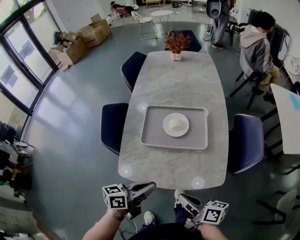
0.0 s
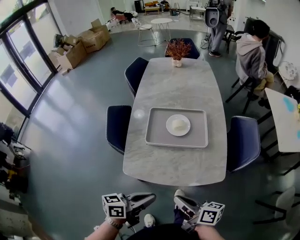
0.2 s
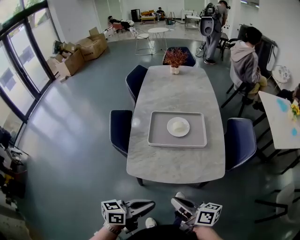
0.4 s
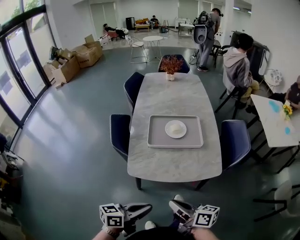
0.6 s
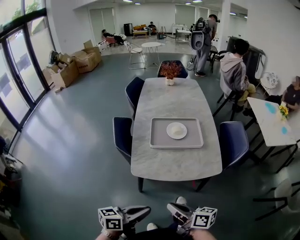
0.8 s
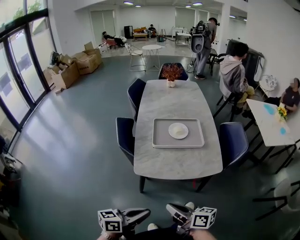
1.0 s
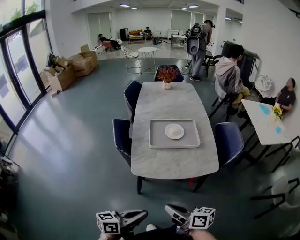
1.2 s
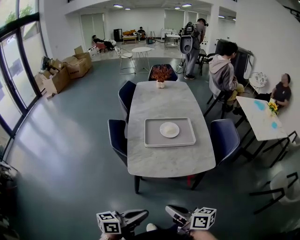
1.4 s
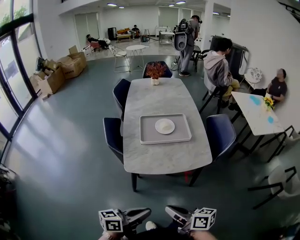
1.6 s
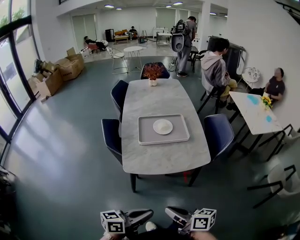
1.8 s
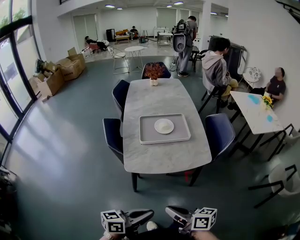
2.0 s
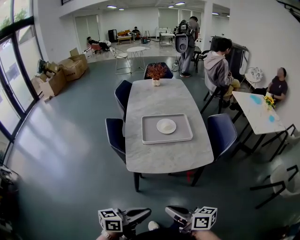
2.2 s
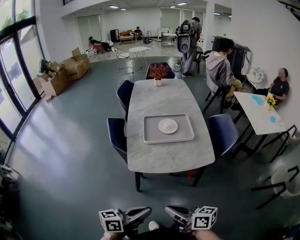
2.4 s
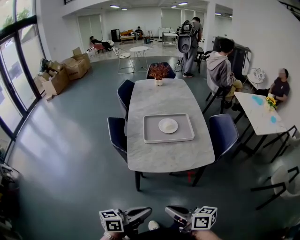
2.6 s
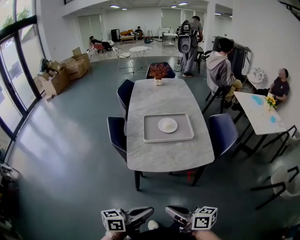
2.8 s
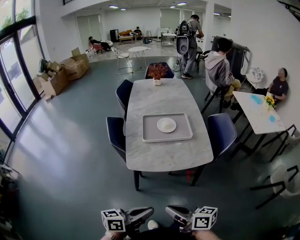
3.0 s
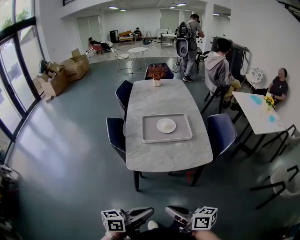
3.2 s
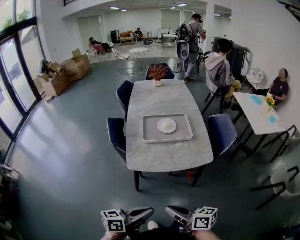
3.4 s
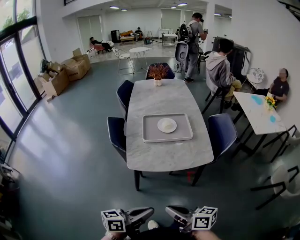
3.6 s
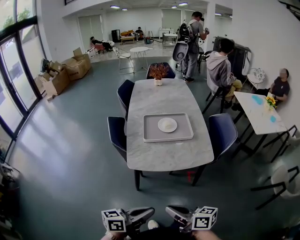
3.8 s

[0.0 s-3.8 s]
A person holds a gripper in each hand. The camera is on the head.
0.0 to 1.2 s: The right gripper moves some 25 cm.
1.2 to 2.6 s: The right gripper moves about 5 cm.

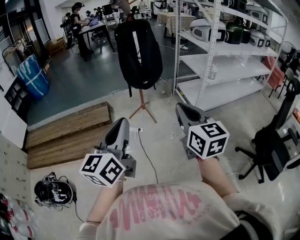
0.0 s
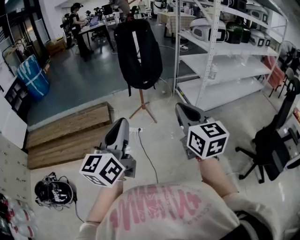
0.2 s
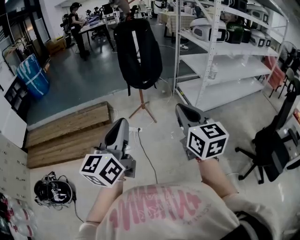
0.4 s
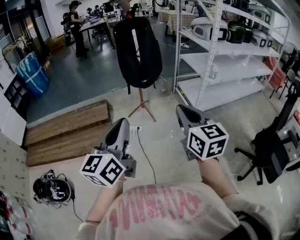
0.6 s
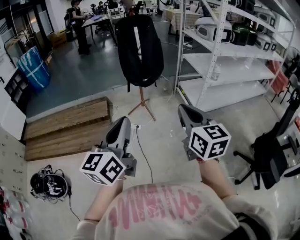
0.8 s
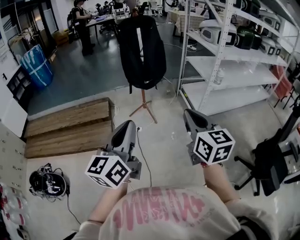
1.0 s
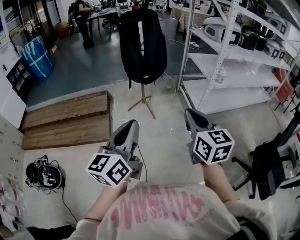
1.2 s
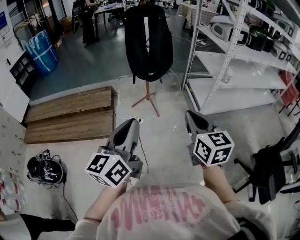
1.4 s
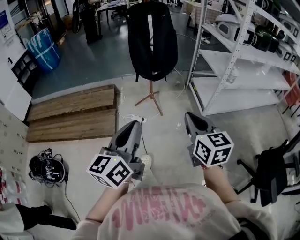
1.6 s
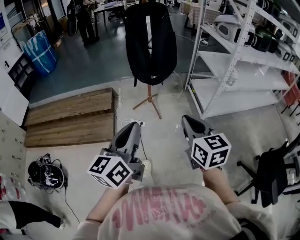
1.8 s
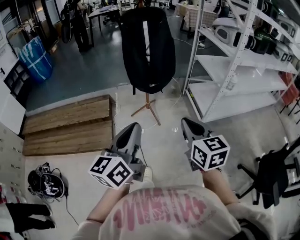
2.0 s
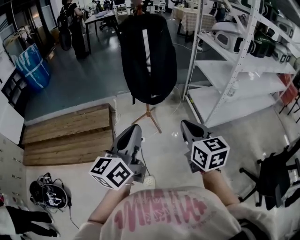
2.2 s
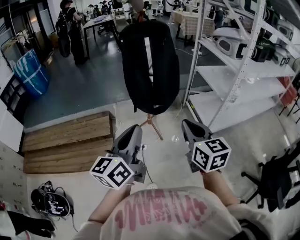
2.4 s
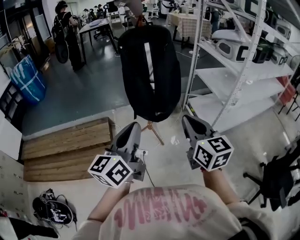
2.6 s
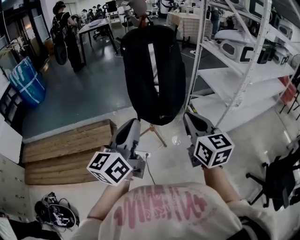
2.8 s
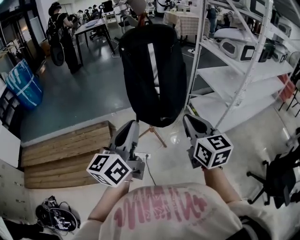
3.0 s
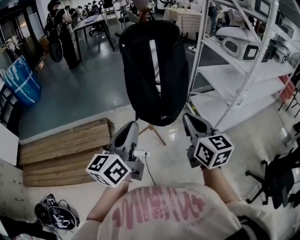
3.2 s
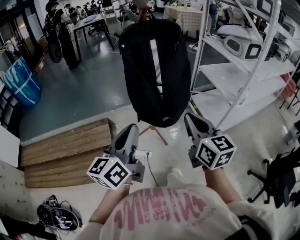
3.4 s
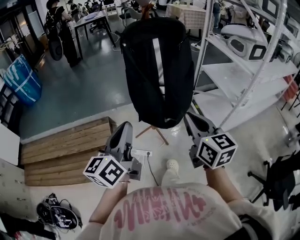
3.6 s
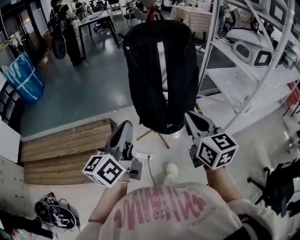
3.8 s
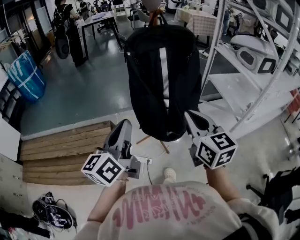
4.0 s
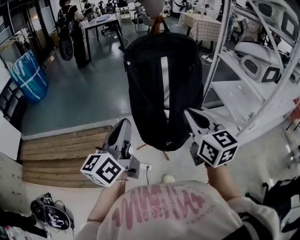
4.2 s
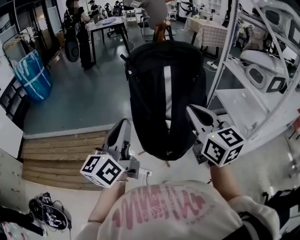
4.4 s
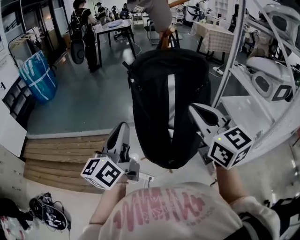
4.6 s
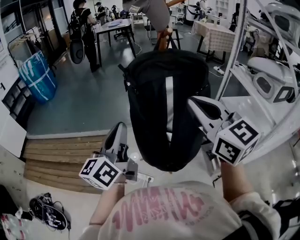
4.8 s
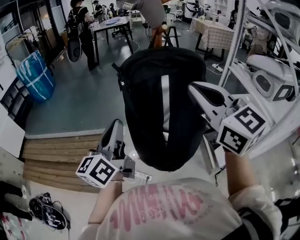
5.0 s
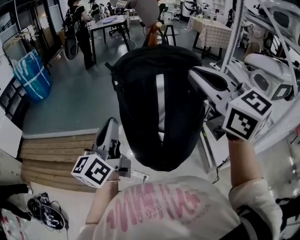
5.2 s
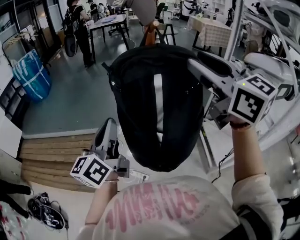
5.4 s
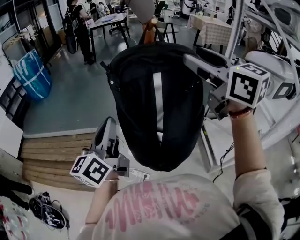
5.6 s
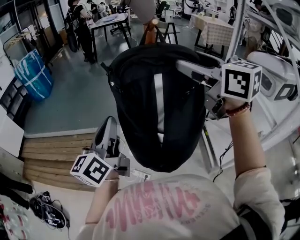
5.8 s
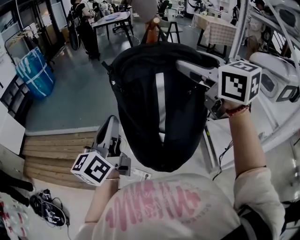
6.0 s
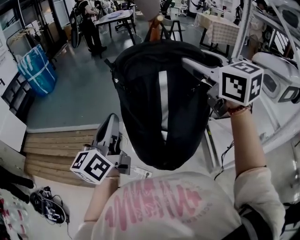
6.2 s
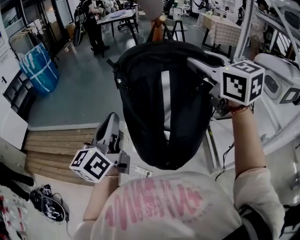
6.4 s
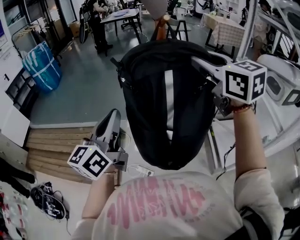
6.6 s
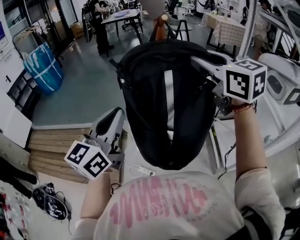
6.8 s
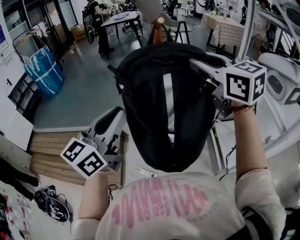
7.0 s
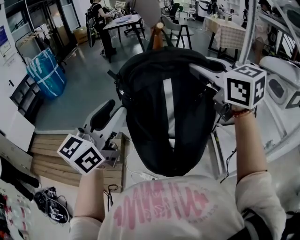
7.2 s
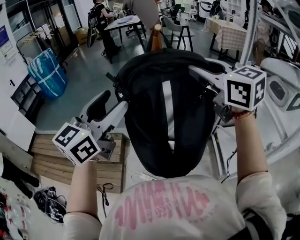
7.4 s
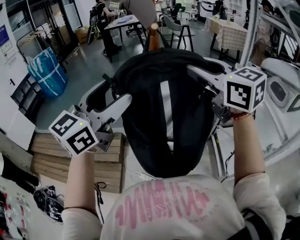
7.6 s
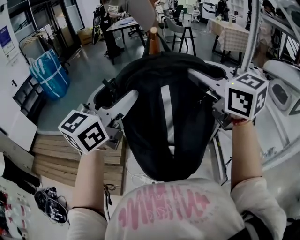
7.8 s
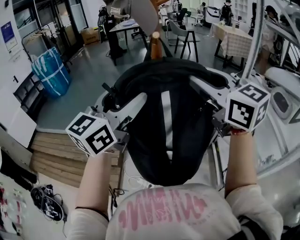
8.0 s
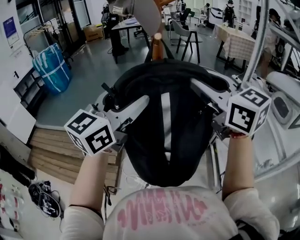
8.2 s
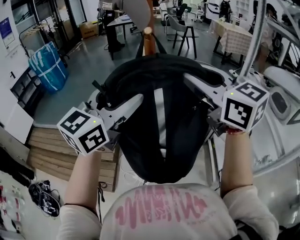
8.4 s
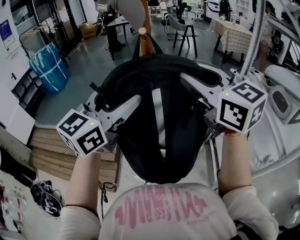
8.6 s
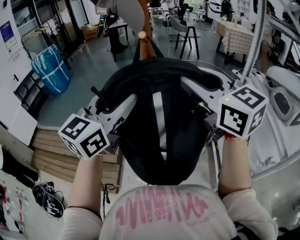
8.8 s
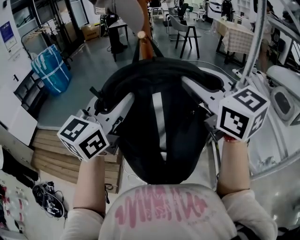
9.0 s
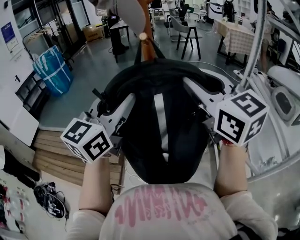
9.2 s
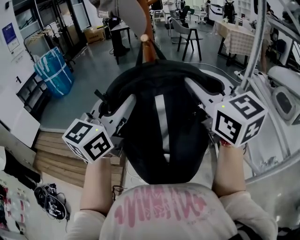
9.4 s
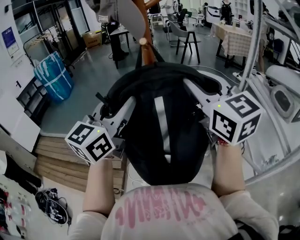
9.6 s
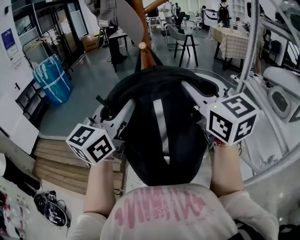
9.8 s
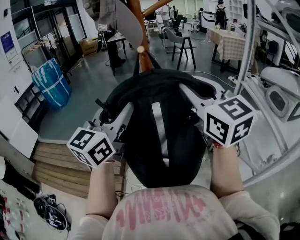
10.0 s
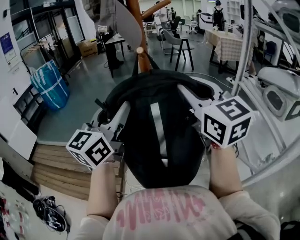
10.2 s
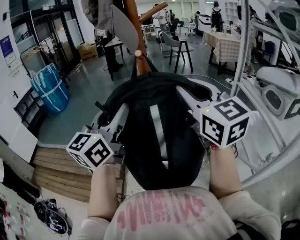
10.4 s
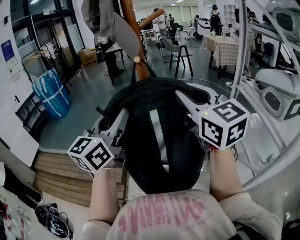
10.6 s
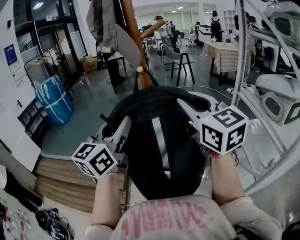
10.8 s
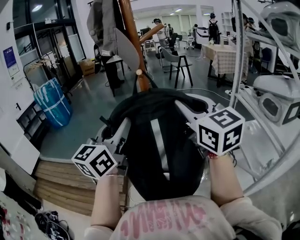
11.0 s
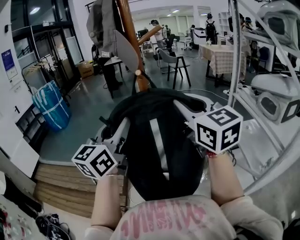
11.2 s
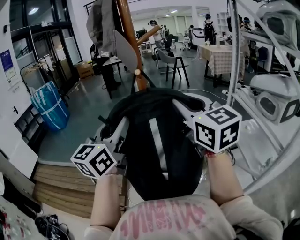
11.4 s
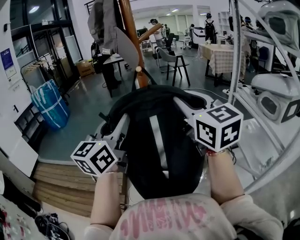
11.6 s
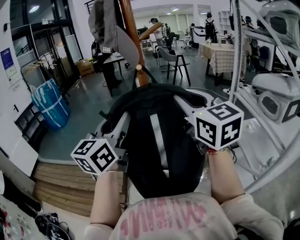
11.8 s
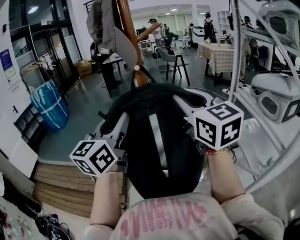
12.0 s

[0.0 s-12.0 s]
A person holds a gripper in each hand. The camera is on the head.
0.0 to 1.6 s: The right gripper travels downward and forward by some 15 cm. The left gripper goes about 10 cm downward, forward and to the right.
1.6 to 3.0 s: Both grippers travel together forward, about 30 cm.
3.0 to 4.4 s: The left gripper is displaced forward by some 15 cm. The right gripper moves forward and upward, about 20 cm.
4.4 to 6.0 s: The left gripper moves forward, roughly 5 cm; the right gripper heads forward and upward, covering about 20 cm, and opens up.
6.0 to 7.6 s: The left gripper is displaced upward and to the right by about 10 cm, rotates approximately 40 degrees, and opens its fingers. The right gripper closes its fingers.
7.6 to 9.0 s: The left gripper closes up.
9.0 to 12.0 s: The grippers make only small movements.

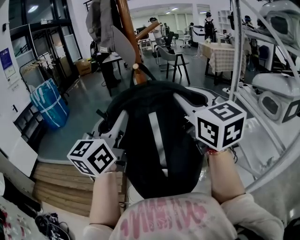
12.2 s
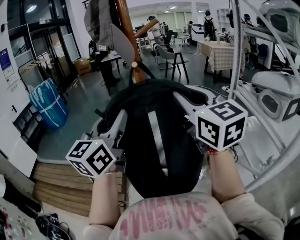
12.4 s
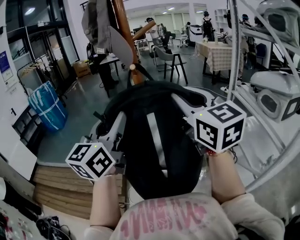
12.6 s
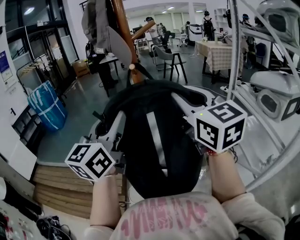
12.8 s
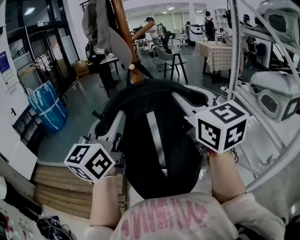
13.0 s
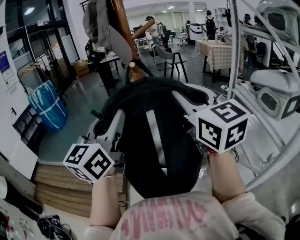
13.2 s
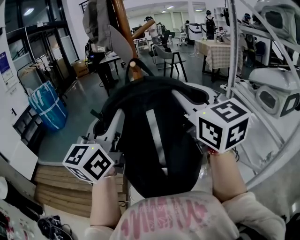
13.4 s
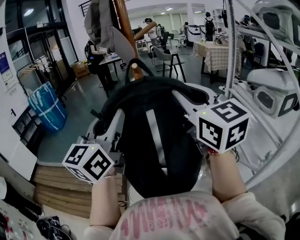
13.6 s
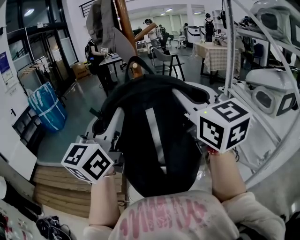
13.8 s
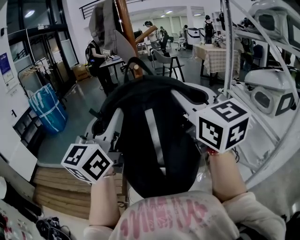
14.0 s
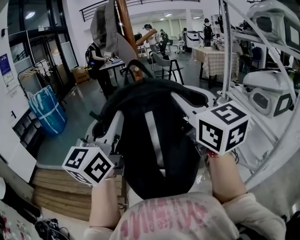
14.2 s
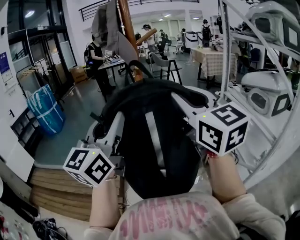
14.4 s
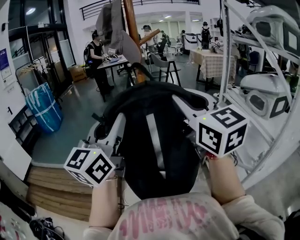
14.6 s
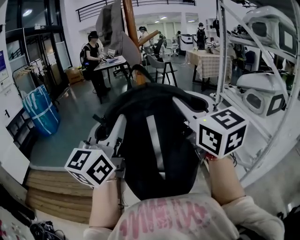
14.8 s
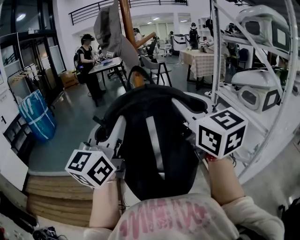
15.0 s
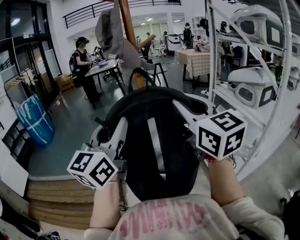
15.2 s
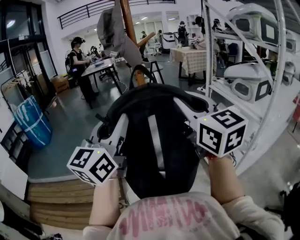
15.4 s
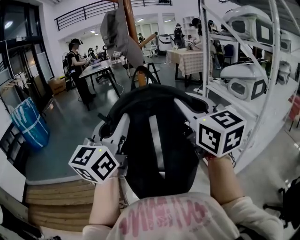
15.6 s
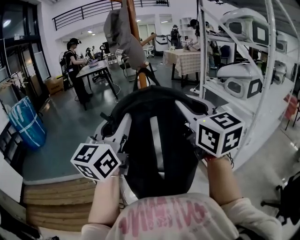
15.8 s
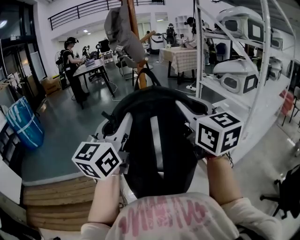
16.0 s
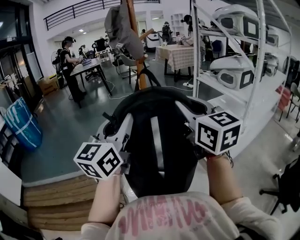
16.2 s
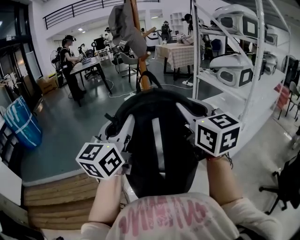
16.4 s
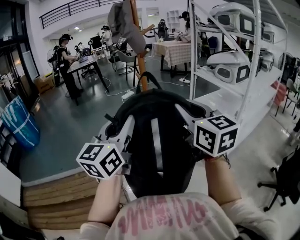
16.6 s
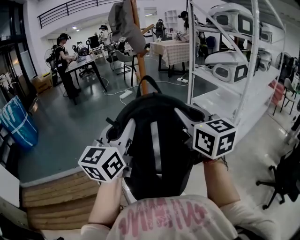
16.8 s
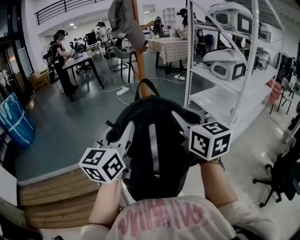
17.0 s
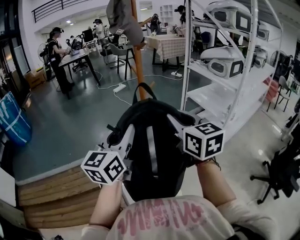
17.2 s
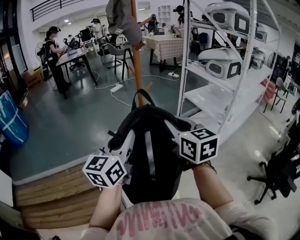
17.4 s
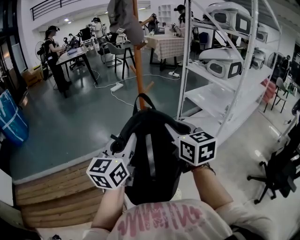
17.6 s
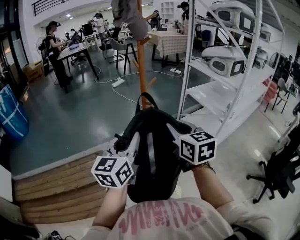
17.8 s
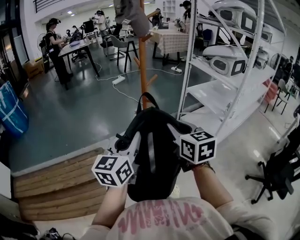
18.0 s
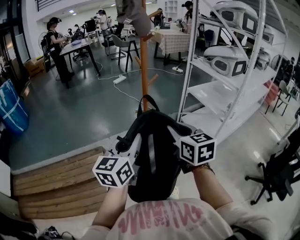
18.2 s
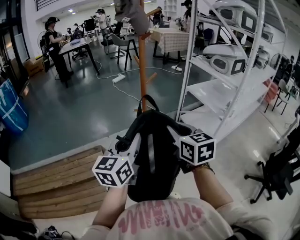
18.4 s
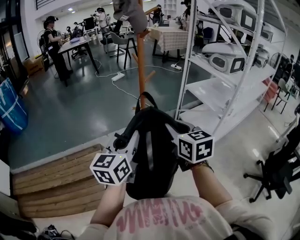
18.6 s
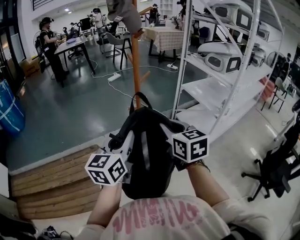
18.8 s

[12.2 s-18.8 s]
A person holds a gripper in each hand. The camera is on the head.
12.2 to 13.8 s: Both grippers move backward, roughly 5 cm.
13.8 to 15.4 s: The left gripper is displaced backward by about 5 cm. The right gripper is displaced backward by roughly 10 cm.
15.4 to 17.2 s: The right gripper travels backward, downward and to the left by approximately 20 cm, and rotates roughly 20 degrees; the left gripper moves downward and backward, approximately 15 cm.
17.2 to 18.8 s: The grippers both shift downward by some 10 cm.

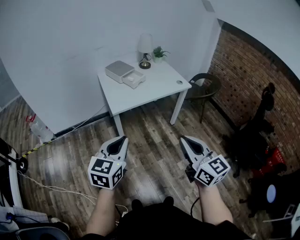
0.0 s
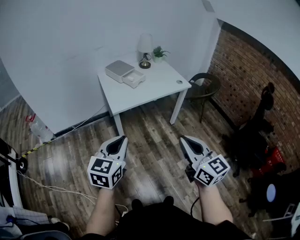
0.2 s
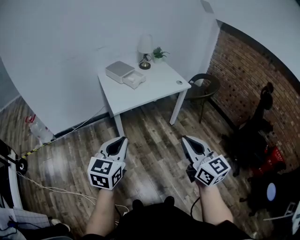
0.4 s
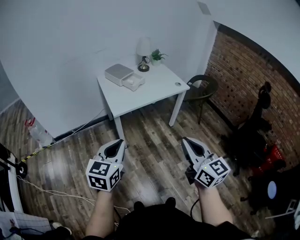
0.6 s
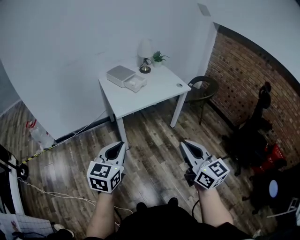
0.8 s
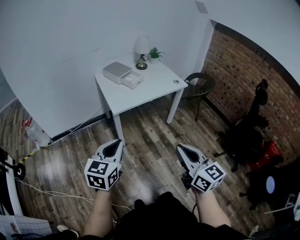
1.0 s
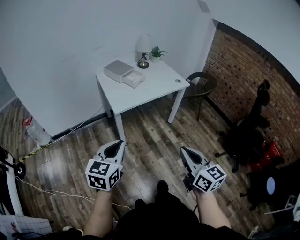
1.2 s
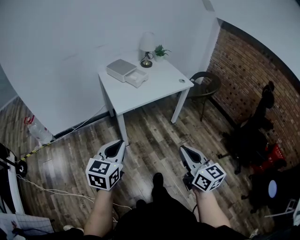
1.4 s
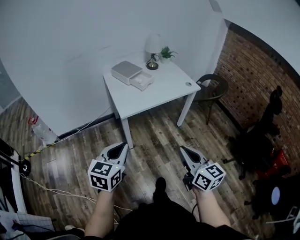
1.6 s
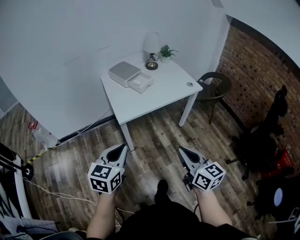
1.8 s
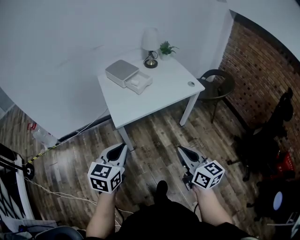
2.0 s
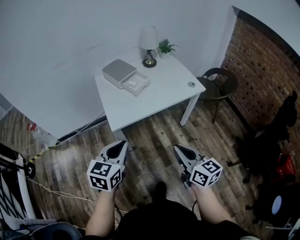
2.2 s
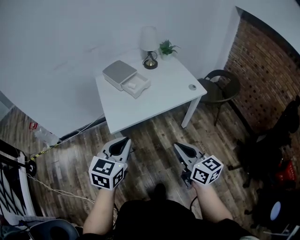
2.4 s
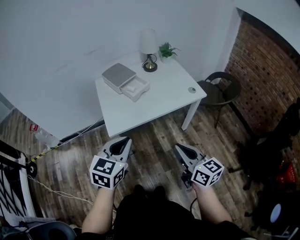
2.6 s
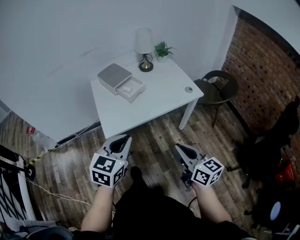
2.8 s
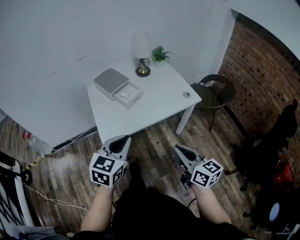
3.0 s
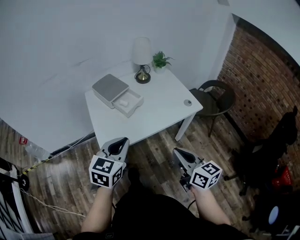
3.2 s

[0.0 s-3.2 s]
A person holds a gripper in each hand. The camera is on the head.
0.0 to 1.6 s: The left gripper goes approximately 5 cm to the left, while the right gripper moves downward and to the left, some 10 cm.
1.6 to 3.2 s: The left gripper shifts roughly 35 cm forward and to the right. Meanwhile the right gripper goes roughly 30 cm forward.
